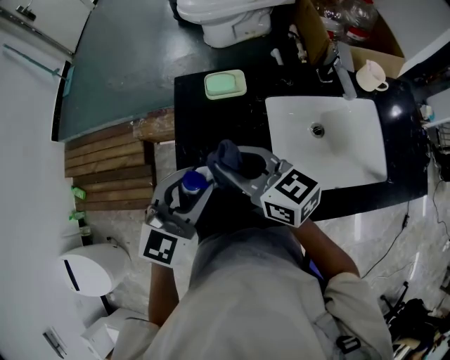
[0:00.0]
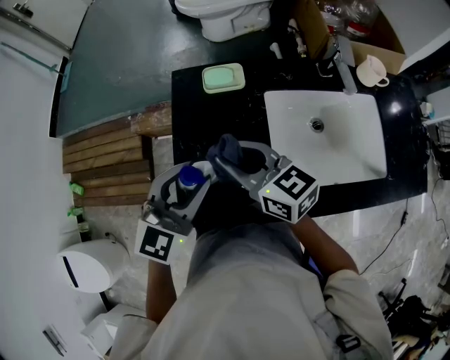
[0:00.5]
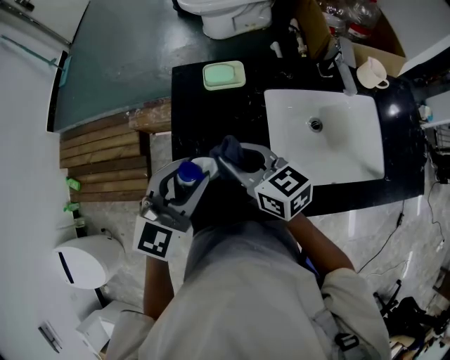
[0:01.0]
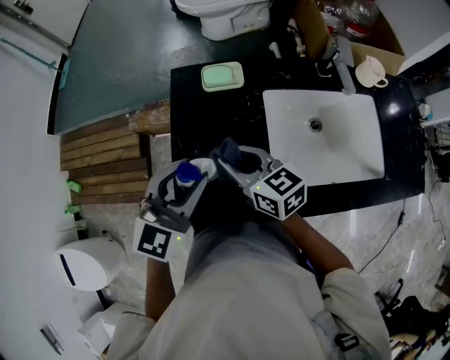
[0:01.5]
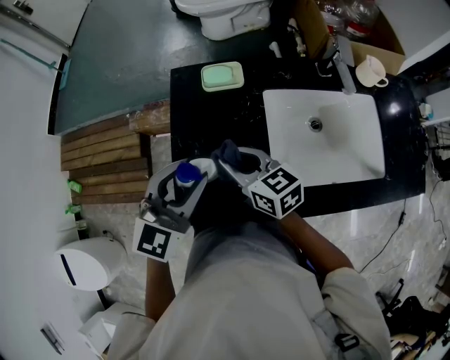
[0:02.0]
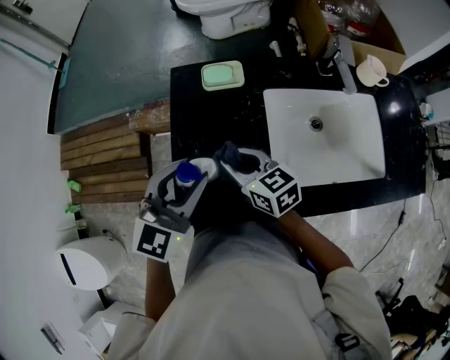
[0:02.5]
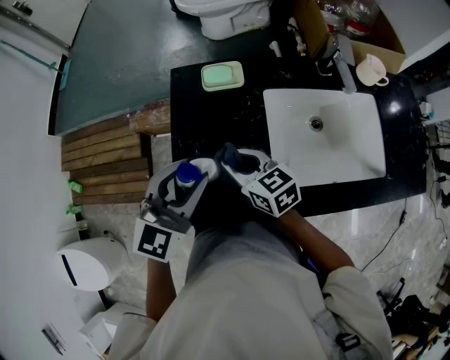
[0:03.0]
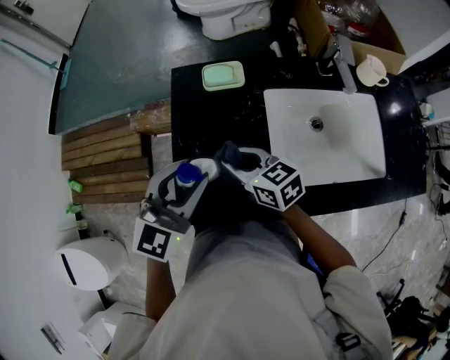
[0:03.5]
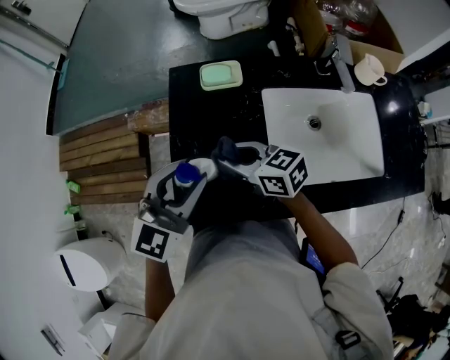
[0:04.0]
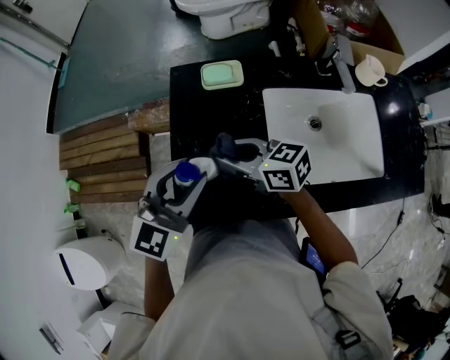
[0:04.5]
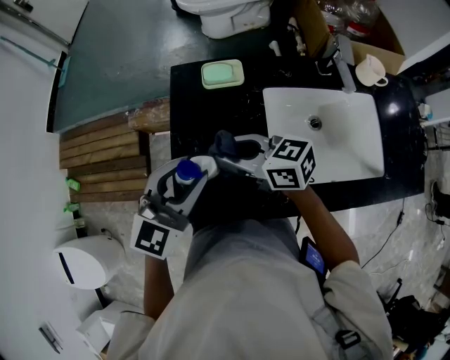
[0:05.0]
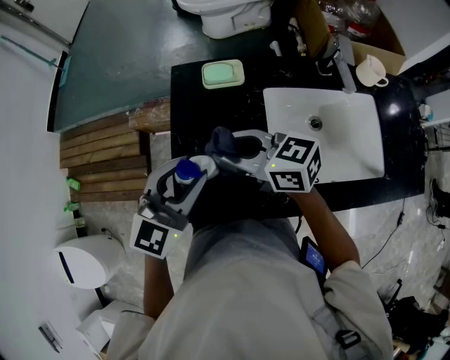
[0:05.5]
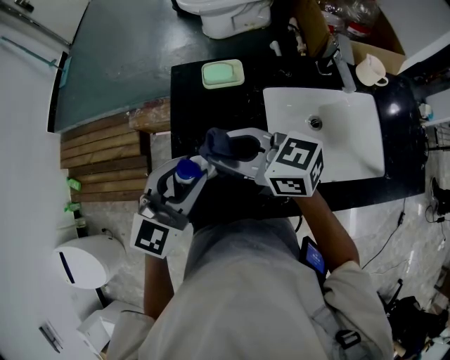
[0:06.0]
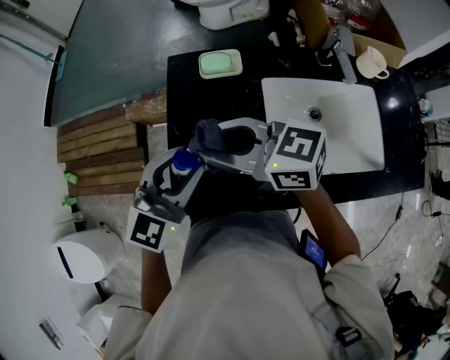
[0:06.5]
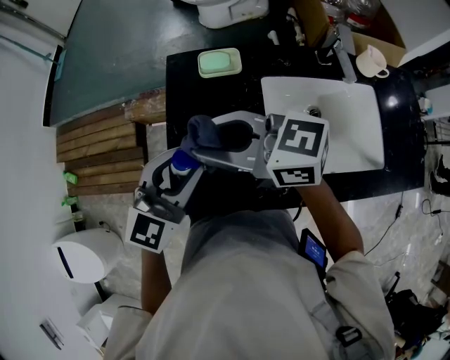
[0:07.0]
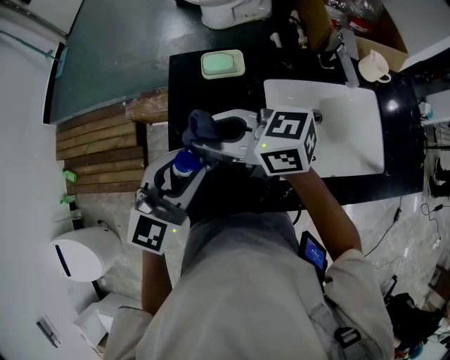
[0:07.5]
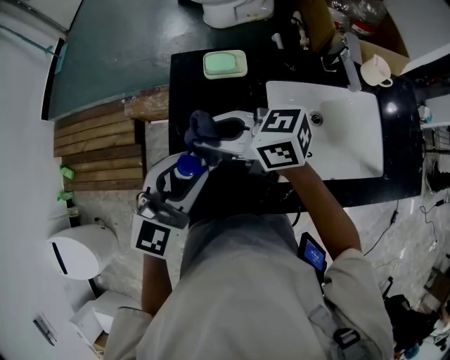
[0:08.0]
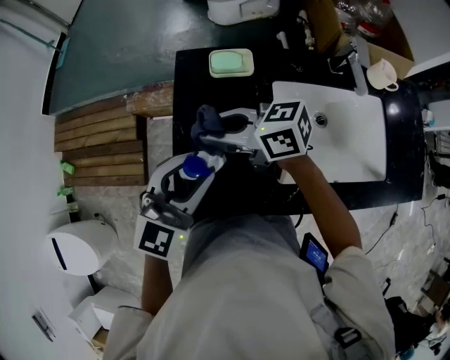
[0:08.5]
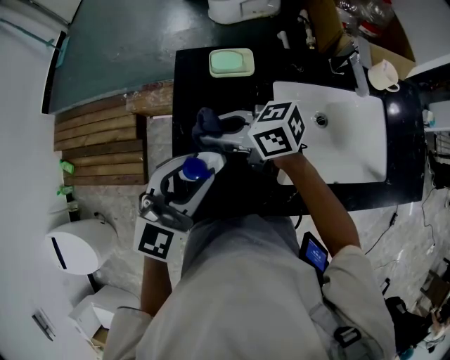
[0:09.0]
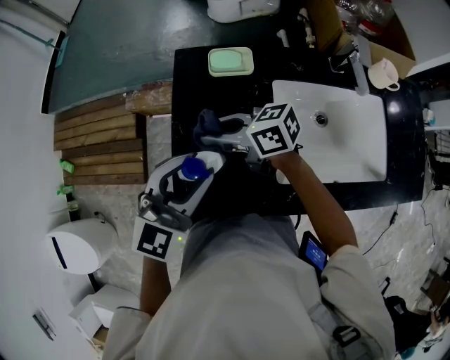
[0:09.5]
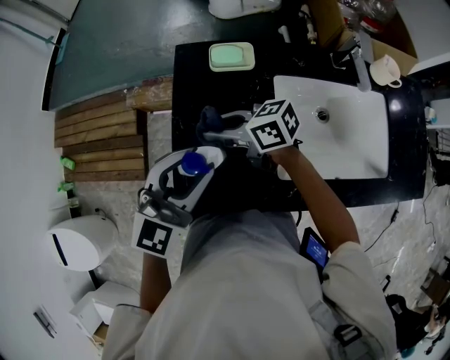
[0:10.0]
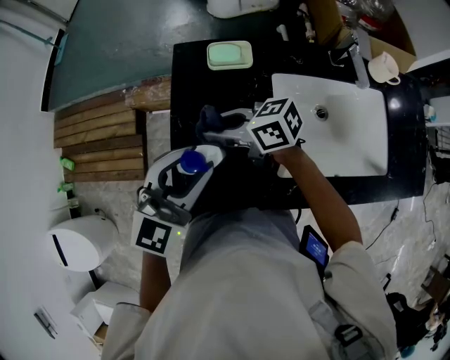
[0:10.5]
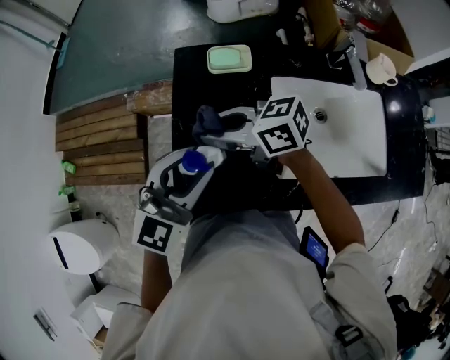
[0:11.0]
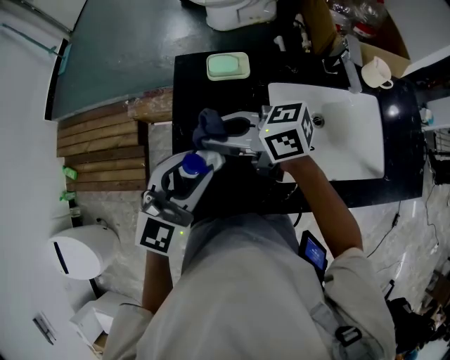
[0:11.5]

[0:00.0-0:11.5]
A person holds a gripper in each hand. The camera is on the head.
0:00.0 to 0:02.0: The right gripper heads downward, covering about 10 cm.
0:02.0 to 0:04.0: The grippers stay close to where they were, moving slightly.
0:04.0 to 0:06.0: The right gripper is displaced upward by some 10 cm.
0:06.0 to 0:07.5: The grippers make only small movements.
0:07.5 to 0:09.5: The right gripper goes about 10 cm downward.
0:09.5 to 0:11.5: The right gripper moves upward, about 5 cm.

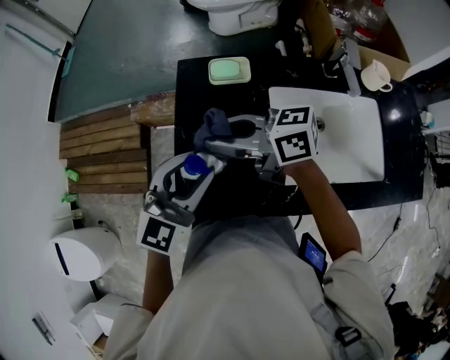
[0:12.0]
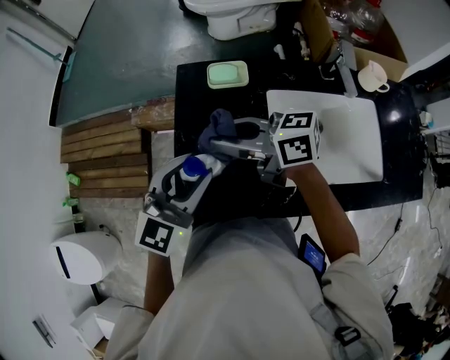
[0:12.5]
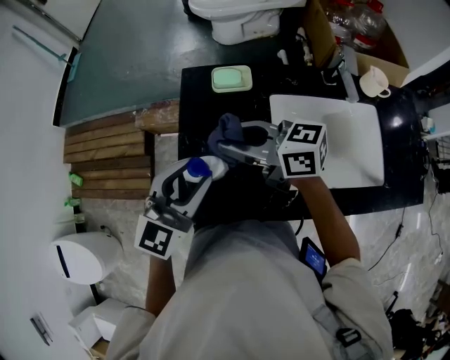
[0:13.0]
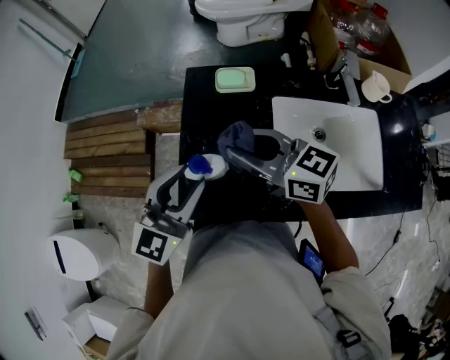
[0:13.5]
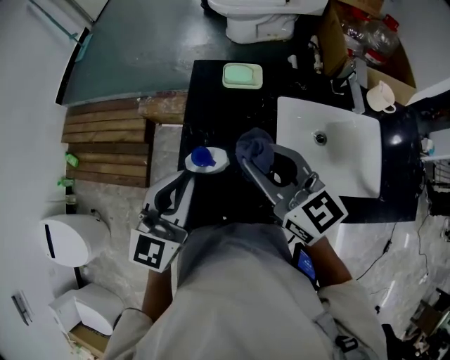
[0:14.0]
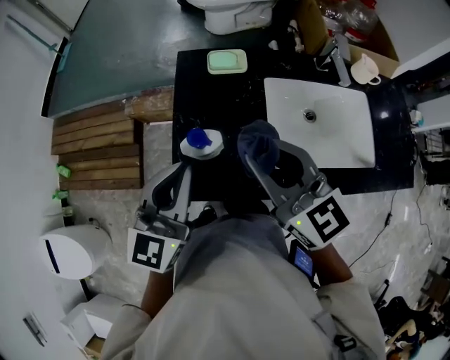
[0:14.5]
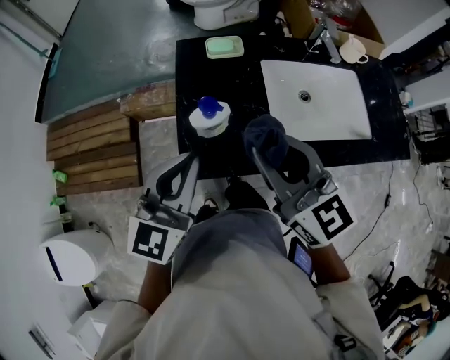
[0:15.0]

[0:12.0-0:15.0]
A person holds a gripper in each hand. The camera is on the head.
0:12.0 to 0:13.5: The right gripper rotates about 20 degrees.
0:13.5 to 0:15.0: The right gripper is displaced backward and upward by approximately 15 cm, and rotates some 40 degrees. Meanwhile the left gripper goes roughly 5 cm backward, and closes up.

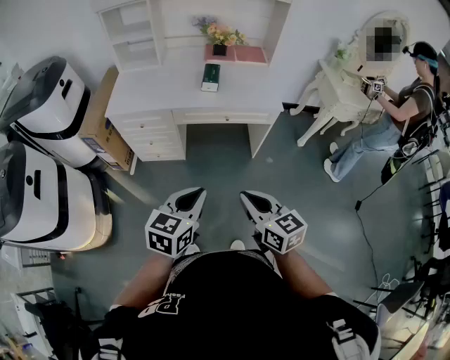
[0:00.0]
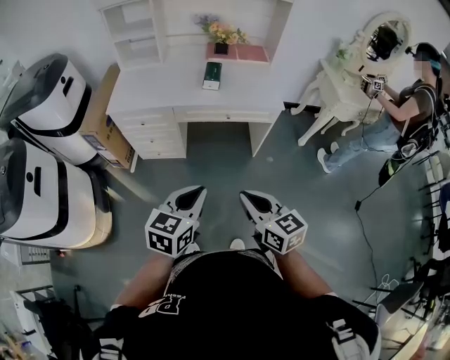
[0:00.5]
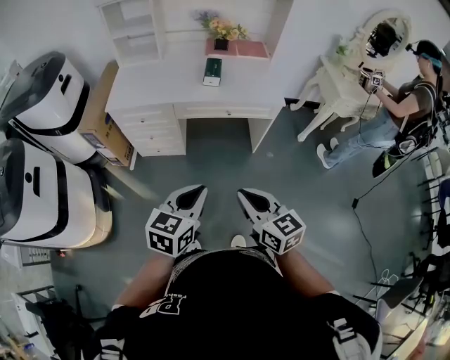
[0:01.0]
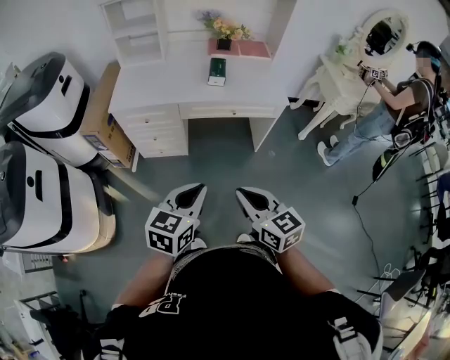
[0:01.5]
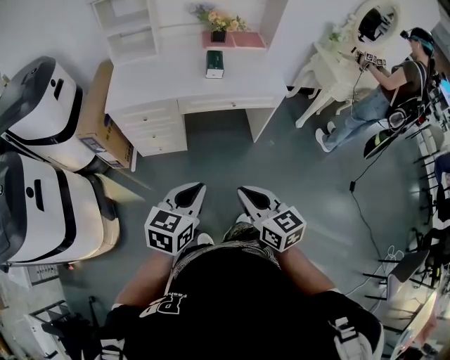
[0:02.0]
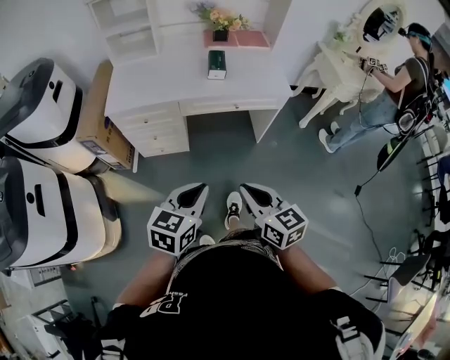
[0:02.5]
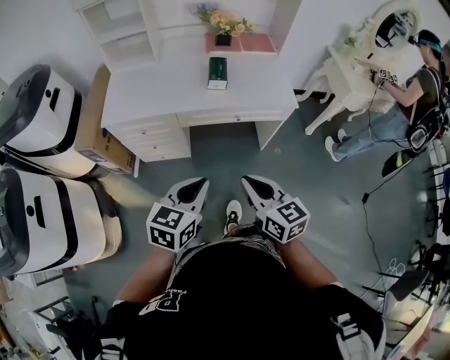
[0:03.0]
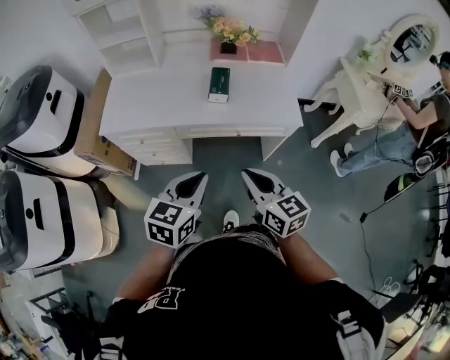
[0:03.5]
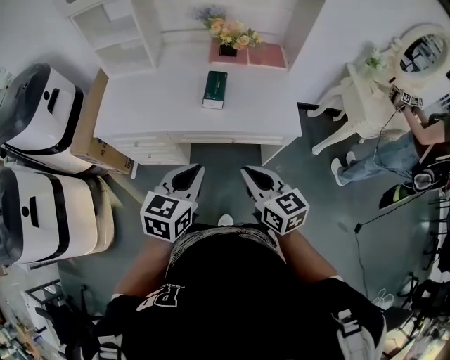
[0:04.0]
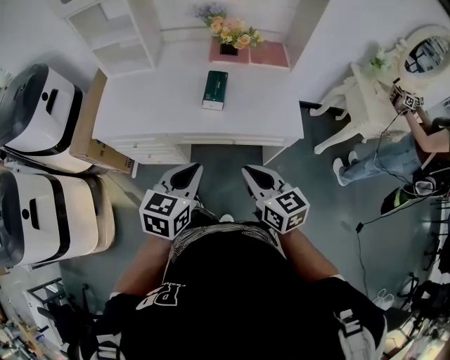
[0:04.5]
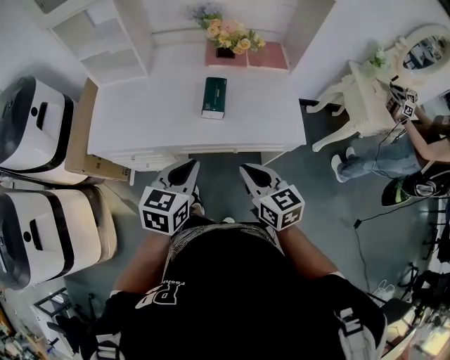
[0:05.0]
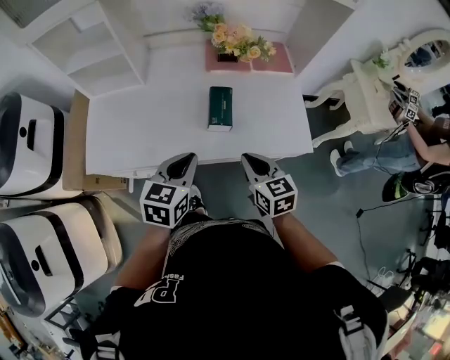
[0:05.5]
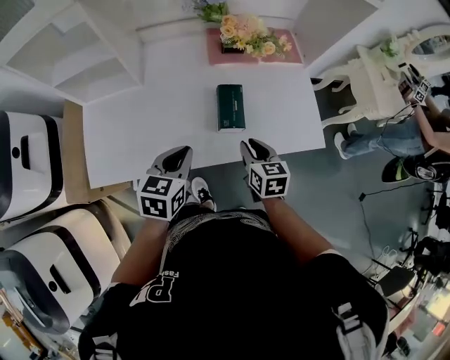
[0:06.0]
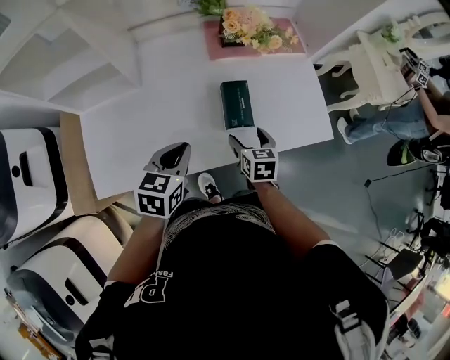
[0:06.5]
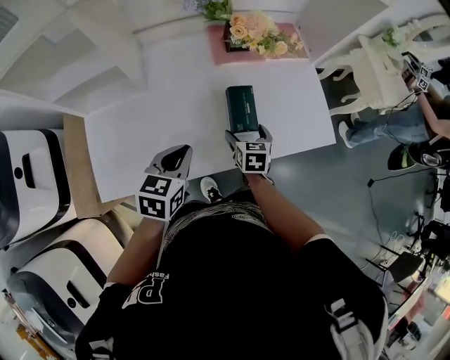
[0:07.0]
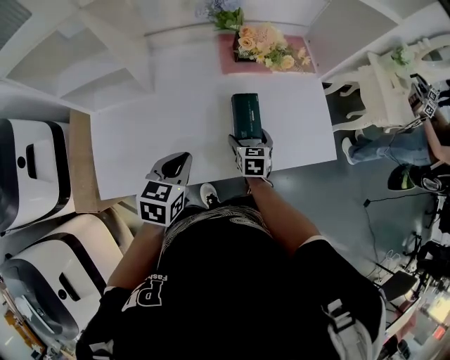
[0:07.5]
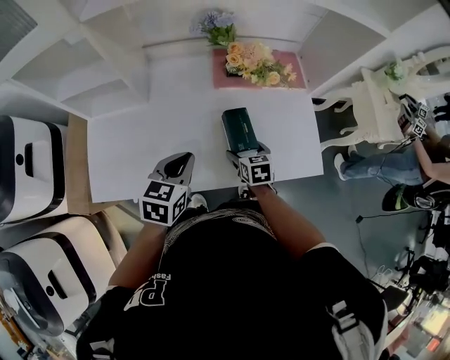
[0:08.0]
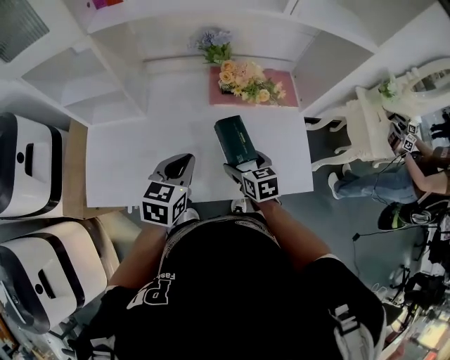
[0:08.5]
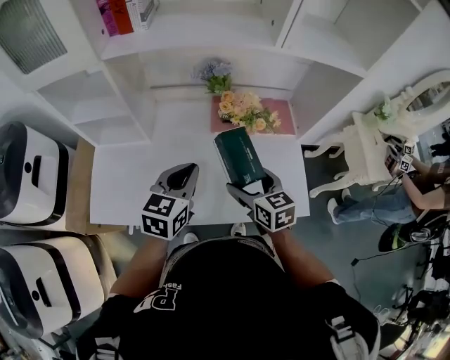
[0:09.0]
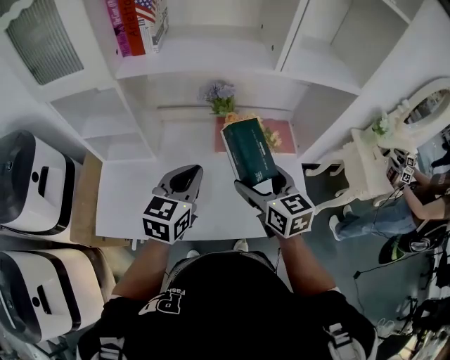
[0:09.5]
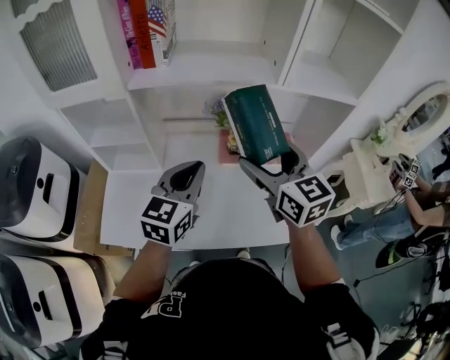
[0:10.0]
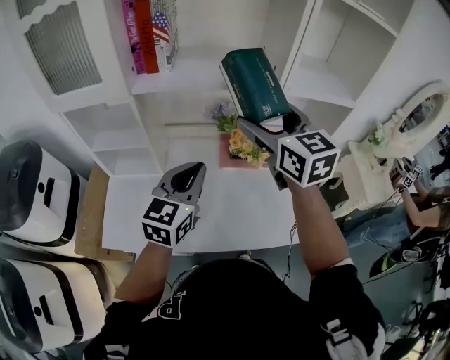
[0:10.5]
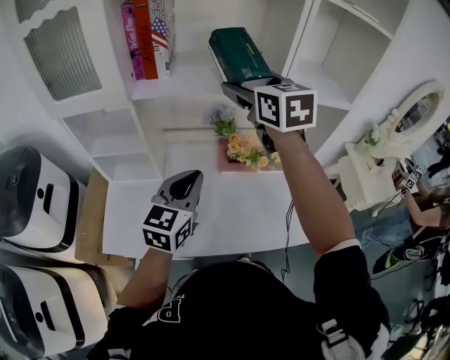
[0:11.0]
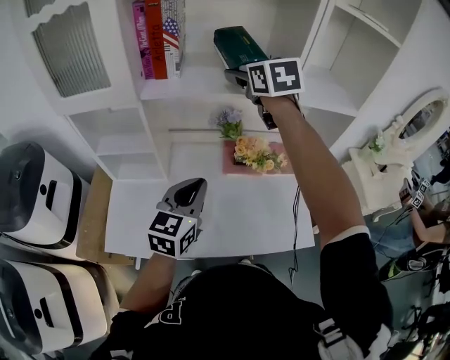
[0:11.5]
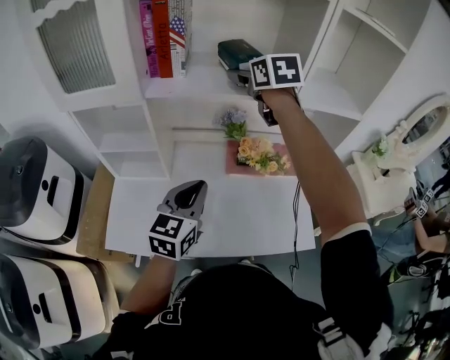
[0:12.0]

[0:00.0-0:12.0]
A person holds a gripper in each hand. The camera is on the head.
0:00.0 to 0:02.0: The two grippers go roughly 10 cm to the left.
0:02.0 to 0:04.0: The two grippers go about 30 cm forward.
0:04.0 to 0:06.0: The left gripper goes approximately 30 cm forward and to the left. The right gripper is displaced forward and downward by about 30 cm, and swivels about 30 degrees.
0:06.0 to 0:08.0: The left gripper moves forward, roughly 5 cm, while the right gripper is displaced forward and downward by about 10 cm, and opens.
0:08.0 to 0:10.0: The right gripper travels upward by approximately 40 cm, and points its fingers some 40 degrees further upward. The left gripper moves upward, roughly 20 cm, and changes its angle by approximately 30 degrees.
0:10.0 to 0:12.0: The right gripper shifts some 25 cm forward and upward.
